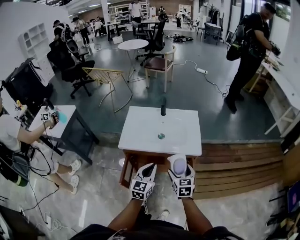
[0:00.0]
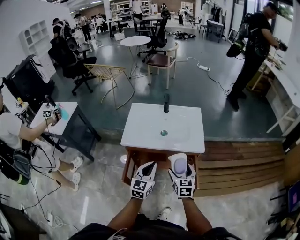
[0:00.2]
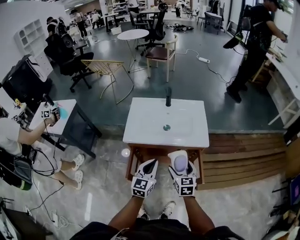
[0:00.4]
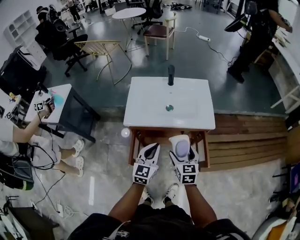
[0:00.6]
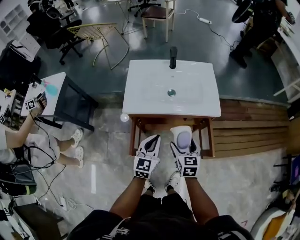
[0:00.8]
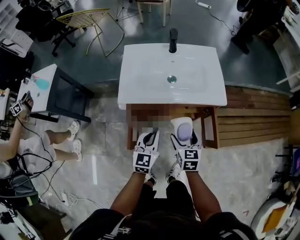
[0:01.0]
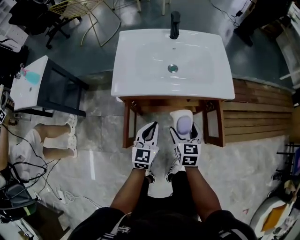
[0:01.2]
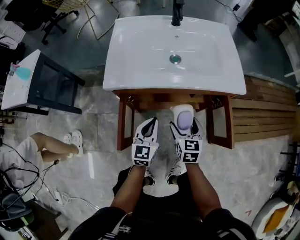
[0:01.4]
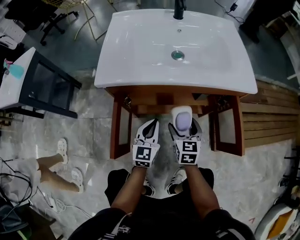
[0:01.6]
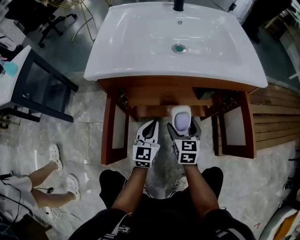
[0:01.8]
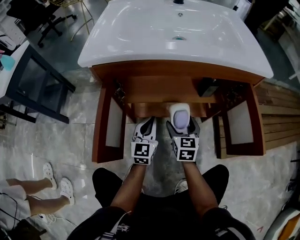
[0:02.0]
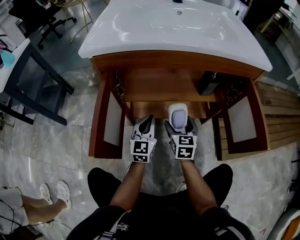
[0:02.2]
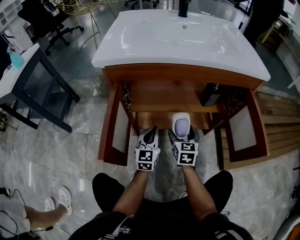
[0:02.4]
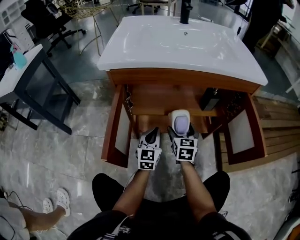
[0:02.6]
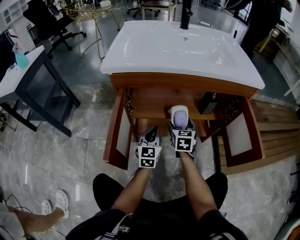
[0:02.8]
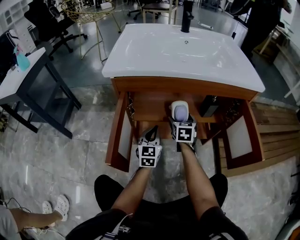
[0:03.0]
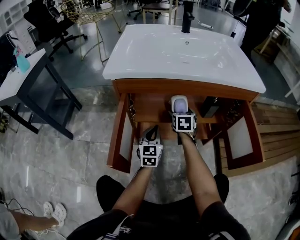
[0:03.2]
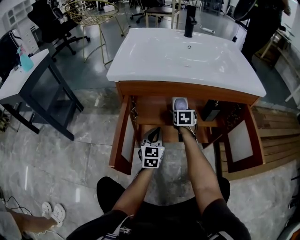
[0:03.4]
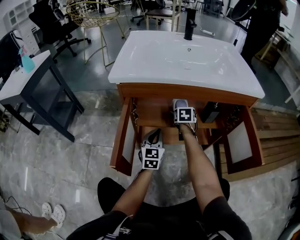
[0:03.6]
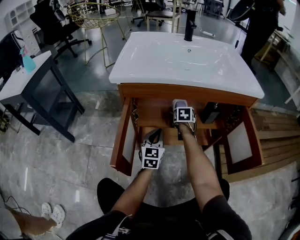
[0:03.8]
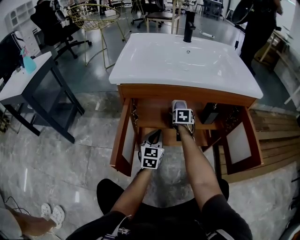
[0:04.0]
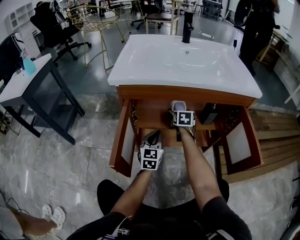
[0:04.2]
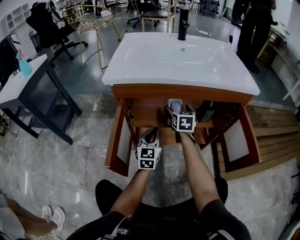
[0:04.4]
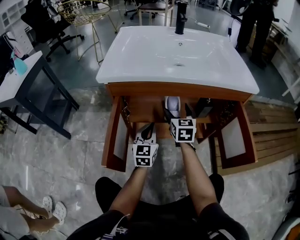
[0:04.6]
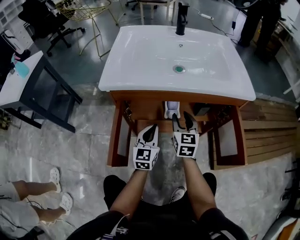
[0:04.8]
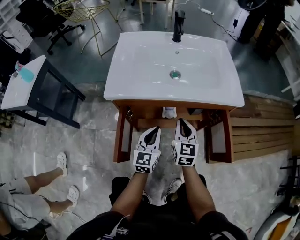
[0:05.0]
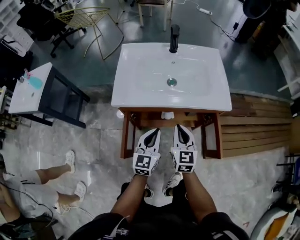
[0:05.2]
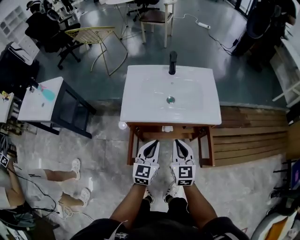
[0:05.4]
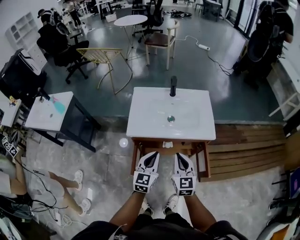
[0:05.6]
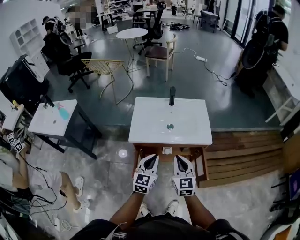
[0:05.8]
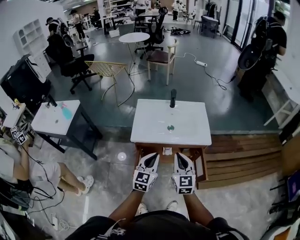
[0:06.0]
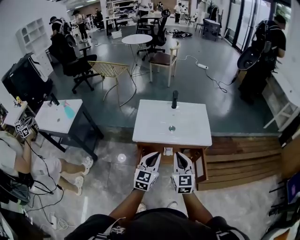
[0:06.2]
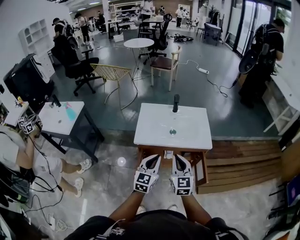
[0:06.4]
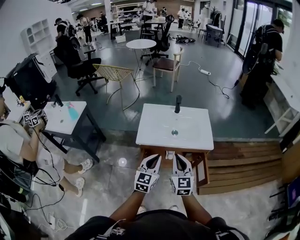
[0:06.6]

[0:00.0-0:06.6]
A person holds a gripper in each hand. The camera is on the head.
0:00.0 to 0:01.6: Both grippers move downward, roughly 35 cm.
0:01.6 to 0:03.2: The left gripper is displaced downward and forward by some 15 cm. The right gripper travels forward and downward by roughly 20 cm.
0:03.2 to 0:05.0: The left gripper heads upward, covering some 20 cm, while the right gripper shifts some 25 cm upward and backward, and closes up.
0:05.0 to 0:06.6: The left gripper is displaced upward by some 35 cm; the right gripper goes about 40 cm upward and backward.

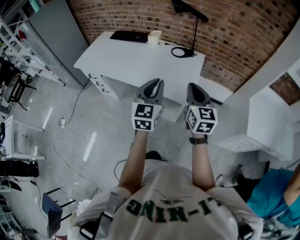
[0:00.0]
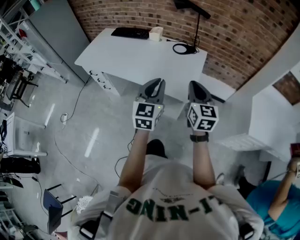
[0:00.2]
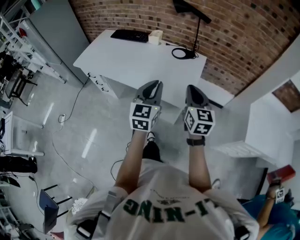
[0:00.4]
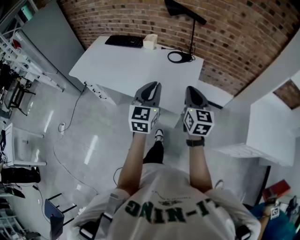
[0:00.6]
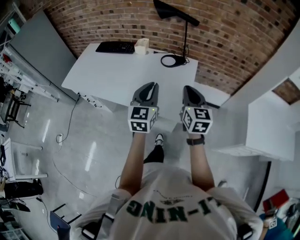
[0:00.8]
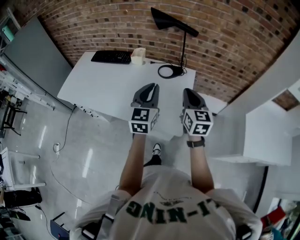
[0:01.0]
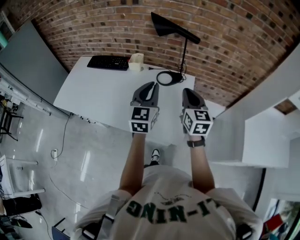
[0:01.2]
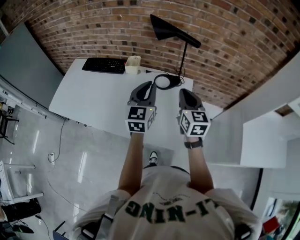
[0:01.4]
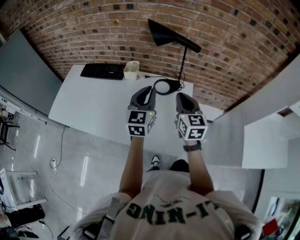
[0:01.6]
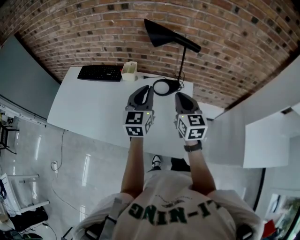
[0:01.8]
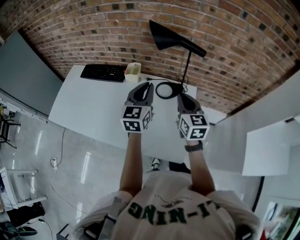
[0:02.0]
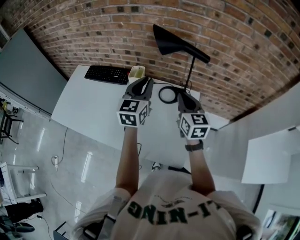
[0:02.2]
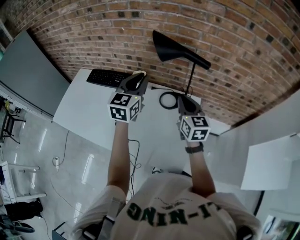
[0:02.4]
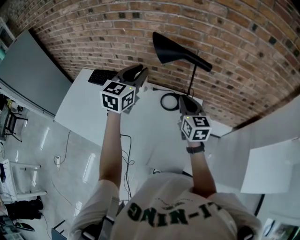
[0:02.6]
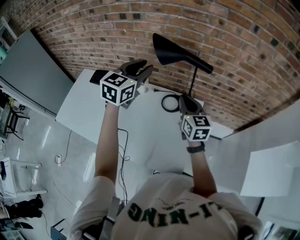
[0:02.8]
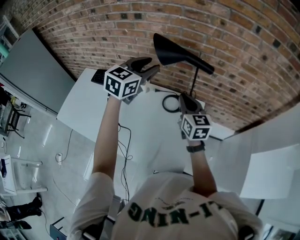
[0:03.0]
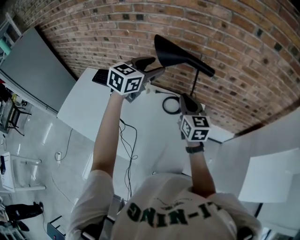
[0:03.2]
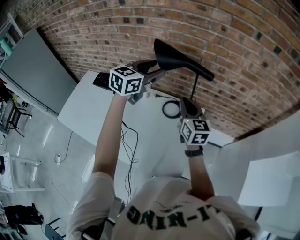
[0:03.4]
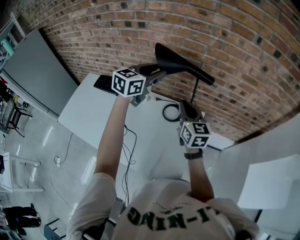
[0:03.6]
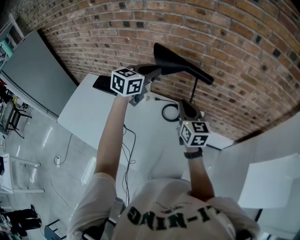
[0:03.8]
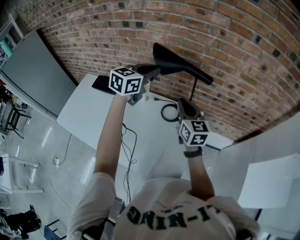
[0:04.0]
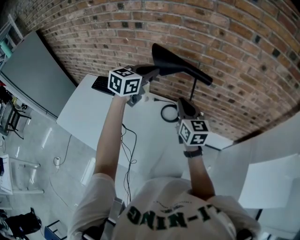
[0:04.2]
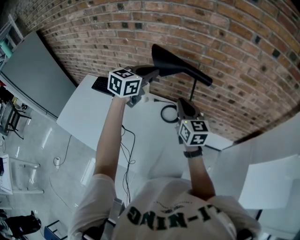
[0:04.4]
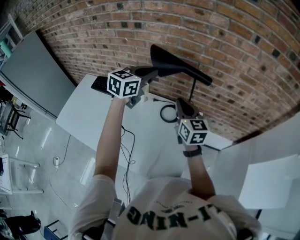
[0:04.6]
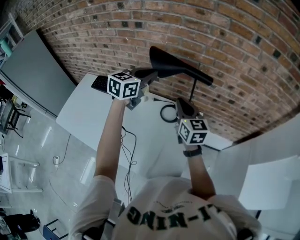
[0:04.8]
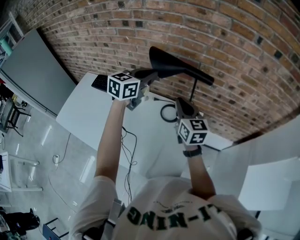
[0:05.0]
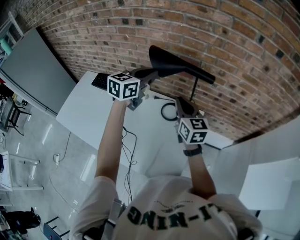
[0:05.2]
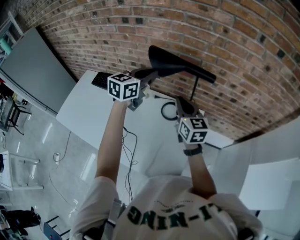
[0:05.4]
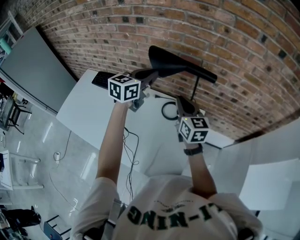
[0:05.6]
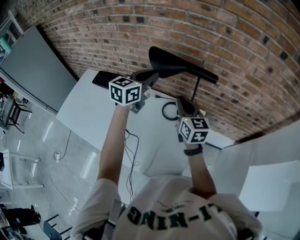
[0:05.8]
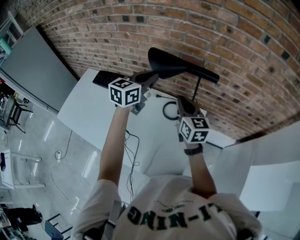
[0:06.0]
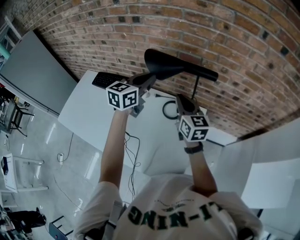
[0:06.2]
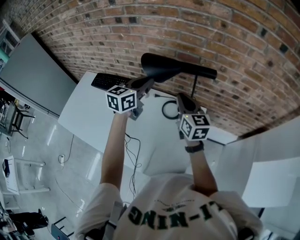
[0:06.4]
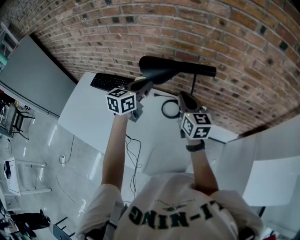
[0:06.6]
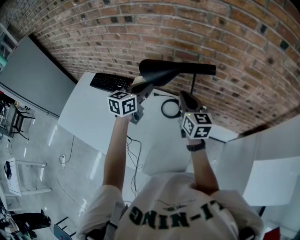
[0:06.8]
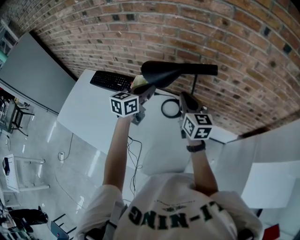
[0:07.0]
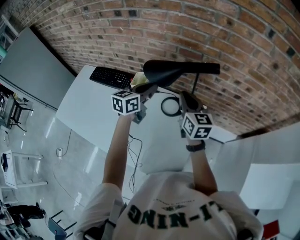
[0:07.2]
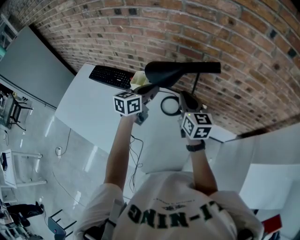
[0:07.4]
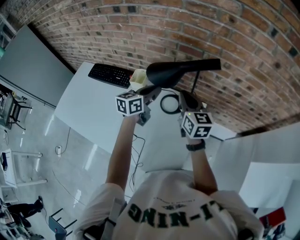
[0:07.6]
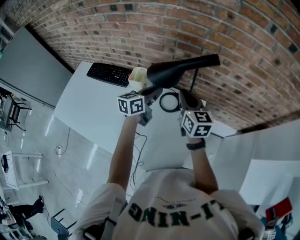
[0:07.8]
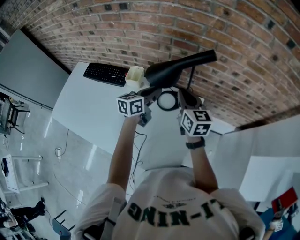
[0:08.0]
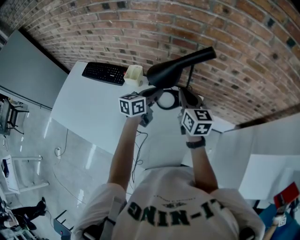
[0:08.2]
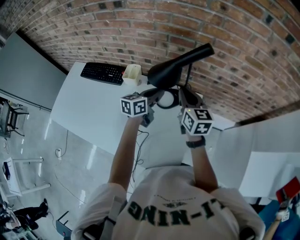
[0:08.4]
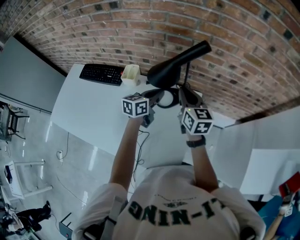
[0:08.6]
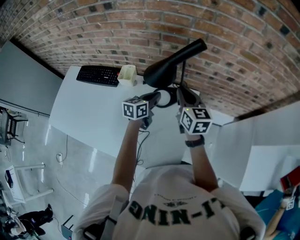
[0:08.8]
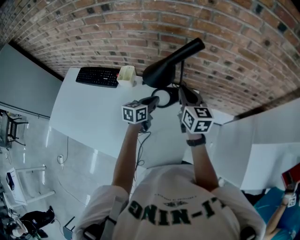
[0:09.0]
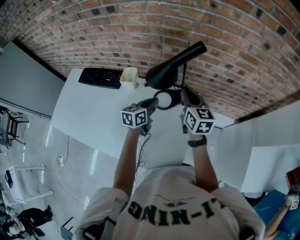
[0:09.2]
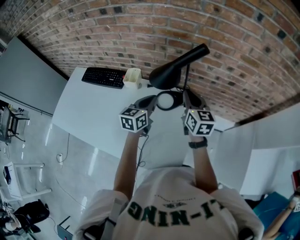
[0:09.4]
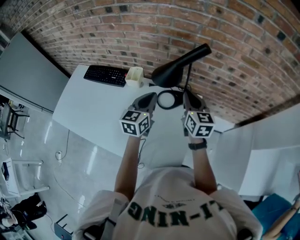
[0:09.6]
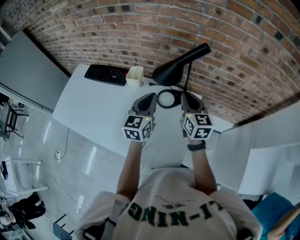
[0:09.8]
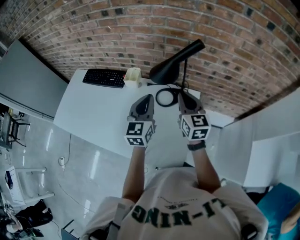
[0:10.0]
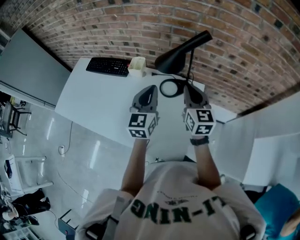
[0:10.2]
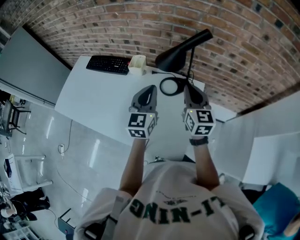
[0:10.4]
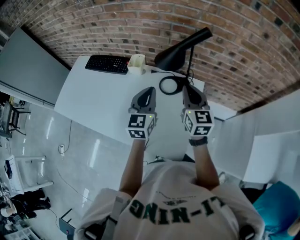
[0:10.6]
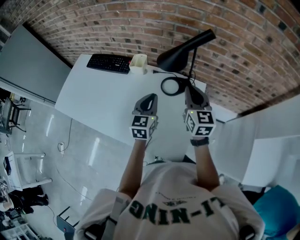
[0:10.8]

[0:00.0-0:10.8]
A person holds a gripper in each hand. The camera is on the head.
0:00.0 to 0:01.6: Both grippers move forward, about 40 cm.
0:01.6 to 0:03.0: The left gripper goes some 20 cm forward and upward, rotates roughly 20 degrees, and opens its fingers; the right gripper moves forward, about 15 cm.
0:03.0 to 0:04.6: The left gripper closes up.
0:04.6 to 0:06.2: The grippers move only a little.
0:06.2 to 0:07.8: The left gripper moves downward, approximately 15 cm, and swivels approximately 20 degrees. The right gripper changes place by some 5 cm.
0:07.8 to 0:09.2: The left gripper goes approximately 5 cm downward; the right gripper ends up some 5 cm from where it was.
0:09.2 to 0:10.8: The left gripper shifts roughly 10 cm backward and upward, and rotates approximately 30 degrees; the right gripper travels backward by roughly 10 cm.

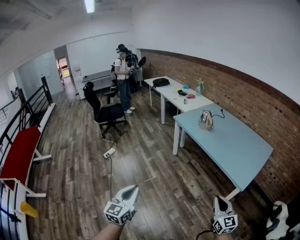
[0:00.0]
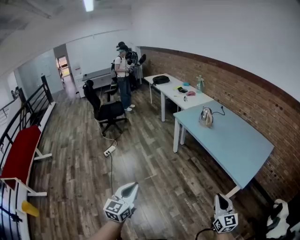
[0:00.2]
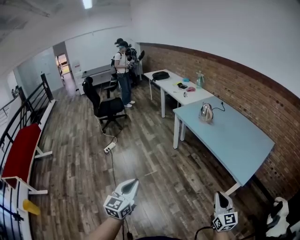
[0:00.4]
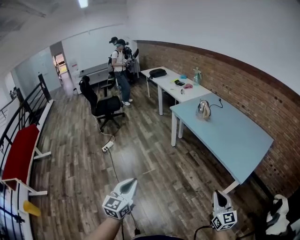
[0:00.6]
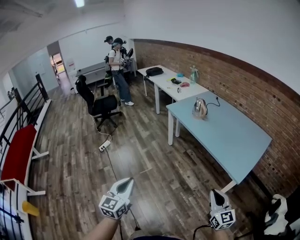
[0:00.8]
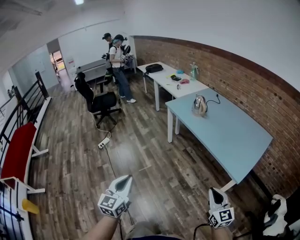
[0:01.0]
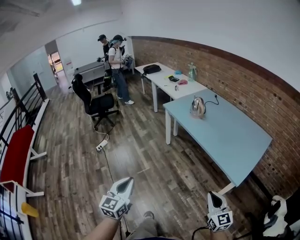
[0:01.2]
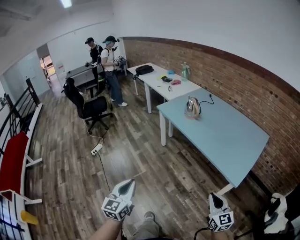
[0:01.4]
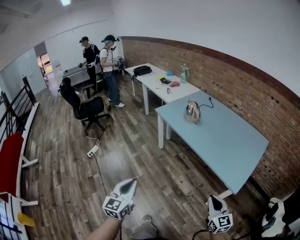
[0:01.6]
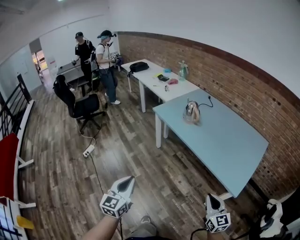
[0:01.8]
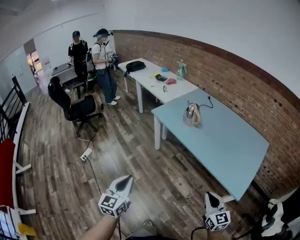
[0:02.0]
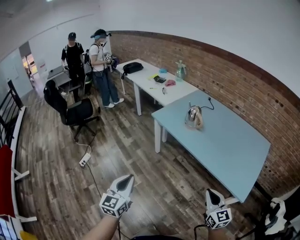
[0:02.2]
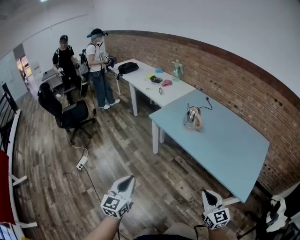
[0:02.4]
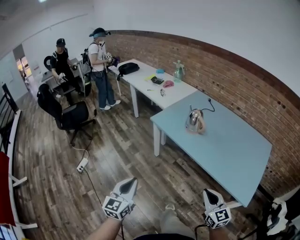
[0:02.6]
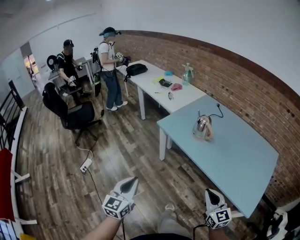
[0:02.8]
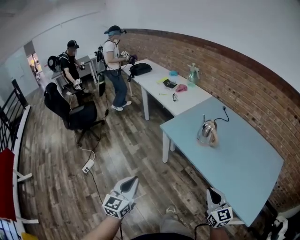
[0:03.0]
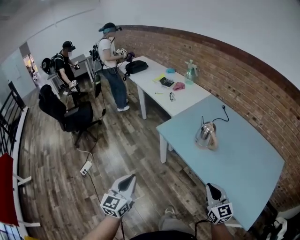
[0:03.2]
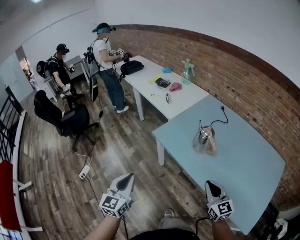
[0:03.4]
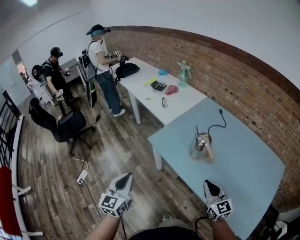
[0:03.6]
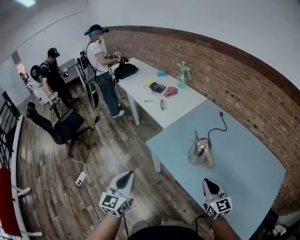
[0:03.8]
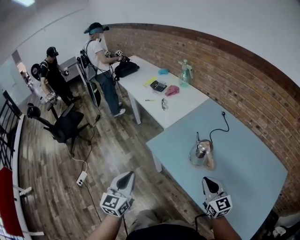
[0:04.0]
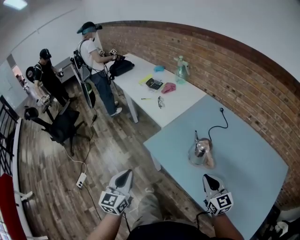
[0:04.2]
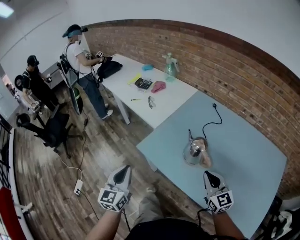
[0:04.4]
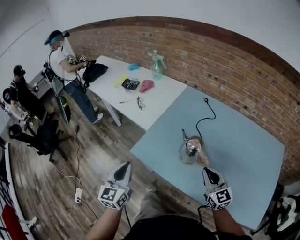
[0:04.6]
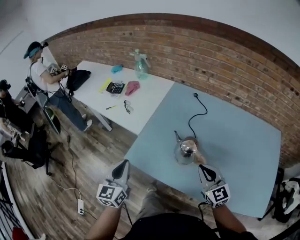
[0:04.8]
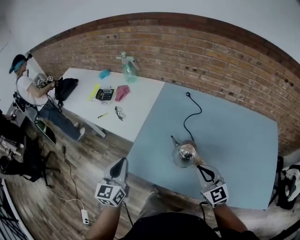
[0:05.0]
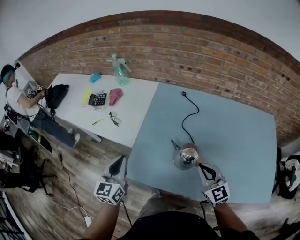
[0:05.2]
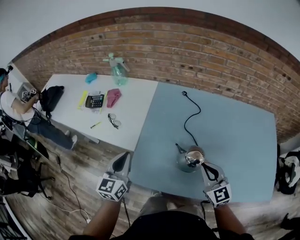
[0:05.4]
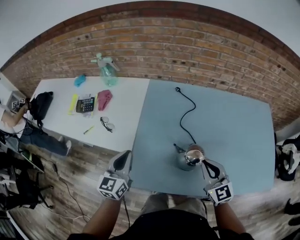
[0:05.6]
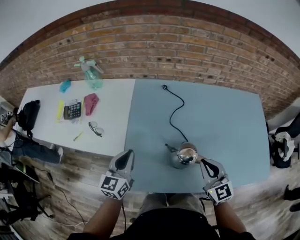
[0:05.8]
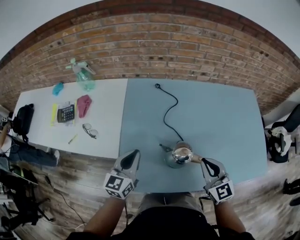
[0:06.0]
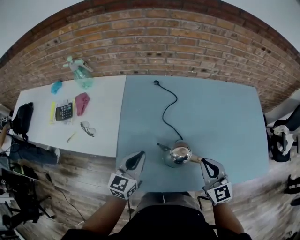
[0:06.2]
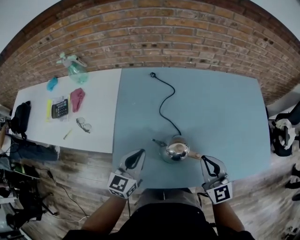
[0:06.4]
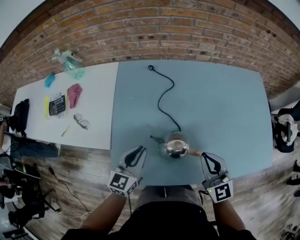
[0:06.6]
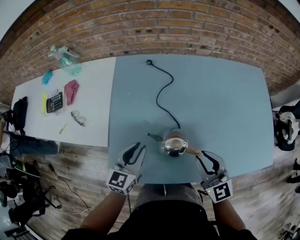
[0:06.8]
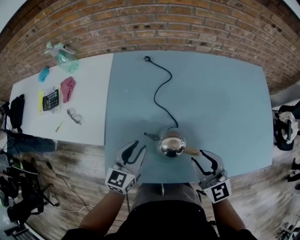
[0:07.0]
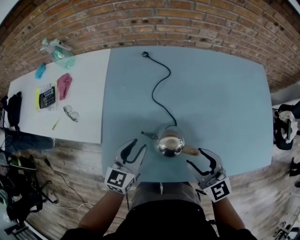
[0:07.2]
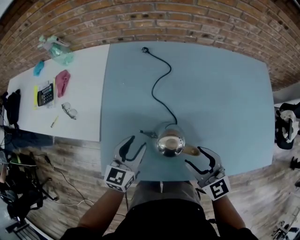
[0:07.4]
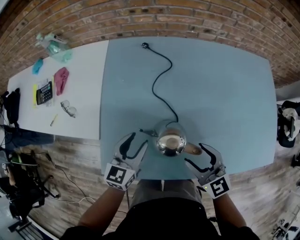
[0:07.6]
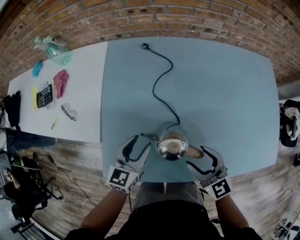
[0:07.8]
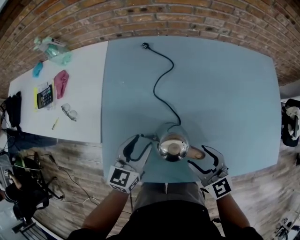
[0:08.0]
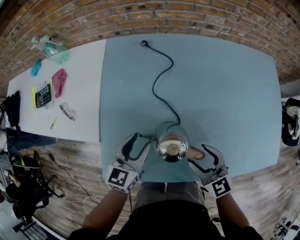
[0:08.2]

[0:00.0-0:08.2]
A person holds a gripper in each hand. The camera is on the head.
0:00.0 to 0:01.6: The right gripper goes approximately 10 cm forward and to the right, while the left gripper is displaced forward and to the right by approximately 20 cm.
0:01.6 to 0:03.2: The two grippers go some 40 cm forward.
0:03.2 to 0:05.0: The left gripper heads forward, covering some 40 cm, and rotates roughly 20 degrees; the right gripper goes some 30 cm forward, and turns by roughly 20 degrees.
0:05.0 to 0:06.6: The left gripper moves about 20 cm, and turns by roughly 40 degrees. The right gripper ends up about 5 cm from where it was, and swivels about 30 degrees.
0:06.6 to 0:08.2: The right gripper moves downward, about 10 cm, and opens; the left gripper moves about 5 cm, and opens.